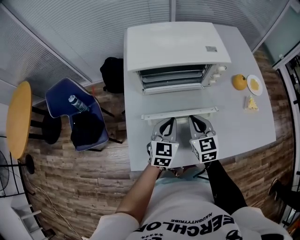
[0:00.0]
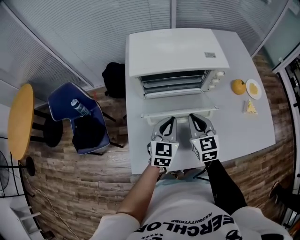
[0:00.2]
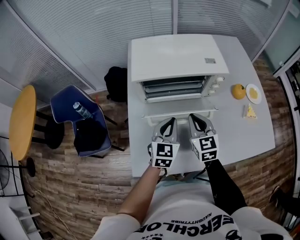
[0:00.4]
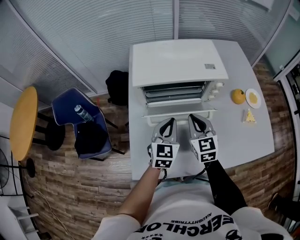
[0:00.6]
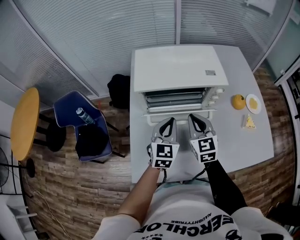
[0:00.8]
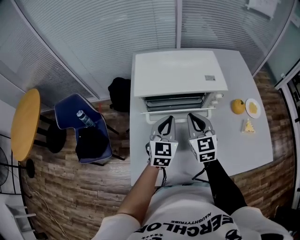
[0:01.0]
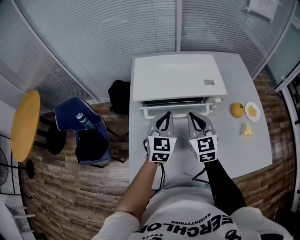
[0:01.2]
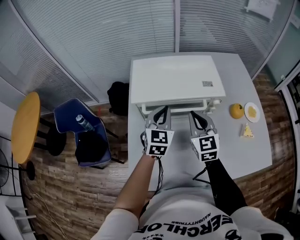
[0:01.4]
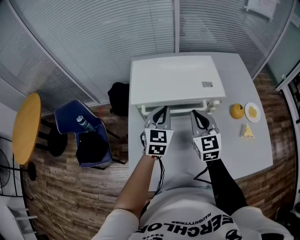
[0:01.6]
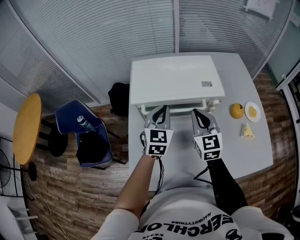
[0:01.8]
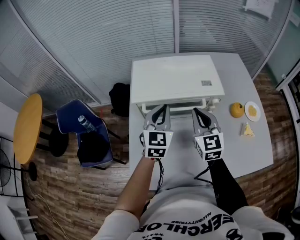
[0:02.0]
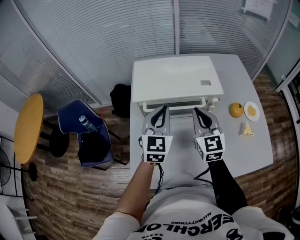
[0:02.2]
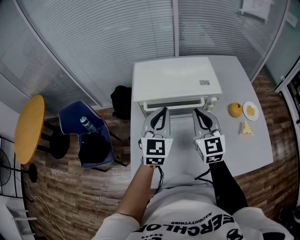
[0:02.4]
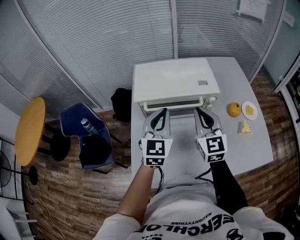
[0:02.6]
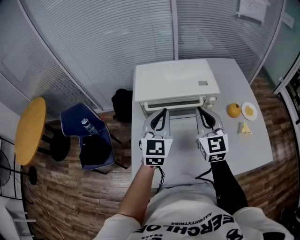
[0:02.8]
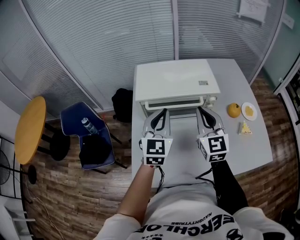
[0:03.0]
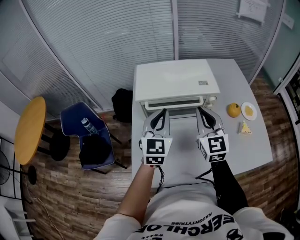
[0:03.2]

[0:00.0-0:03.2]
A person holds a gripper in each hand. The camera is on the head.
0:00.0 to 0:01.6: The right gripper travels upward and forward by about 15 cm, while the left gripper shifts approximately 20 cm forward and upward.
0:01.6 to 0:03.2: The left gripper goes approximately 10 cm backward and upward. The right gripper goes approximately 10 cm upward and backward.

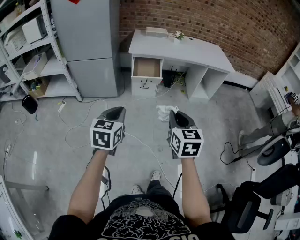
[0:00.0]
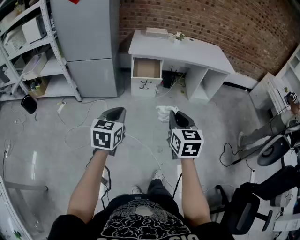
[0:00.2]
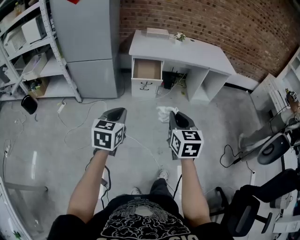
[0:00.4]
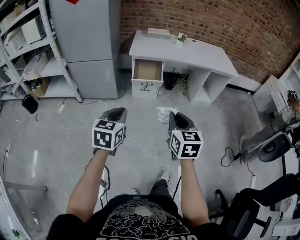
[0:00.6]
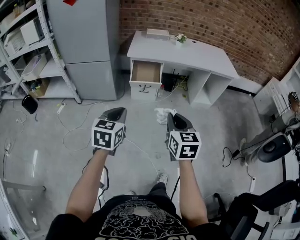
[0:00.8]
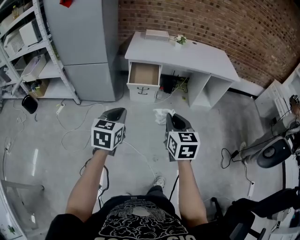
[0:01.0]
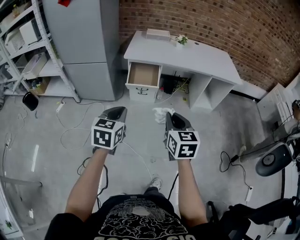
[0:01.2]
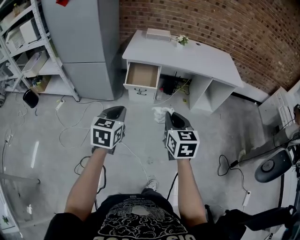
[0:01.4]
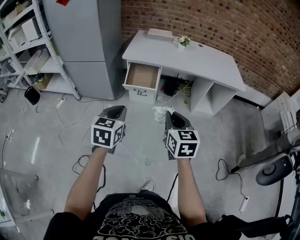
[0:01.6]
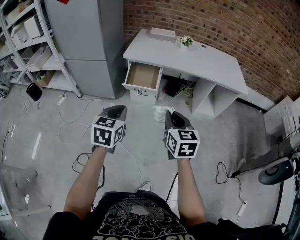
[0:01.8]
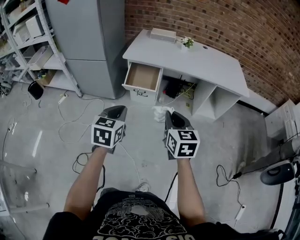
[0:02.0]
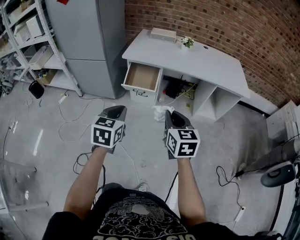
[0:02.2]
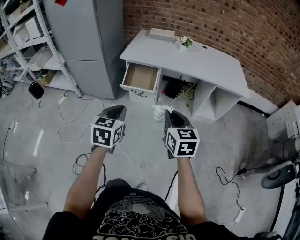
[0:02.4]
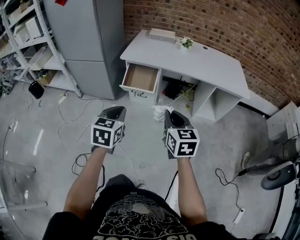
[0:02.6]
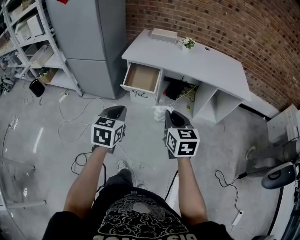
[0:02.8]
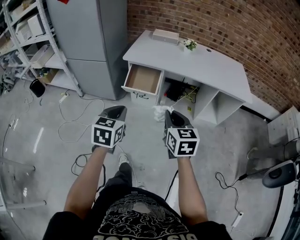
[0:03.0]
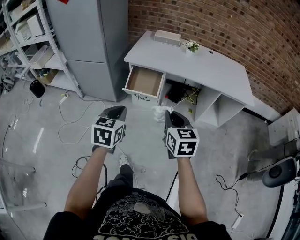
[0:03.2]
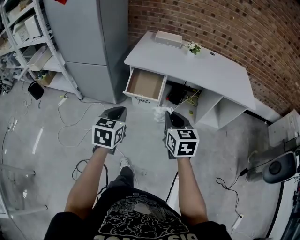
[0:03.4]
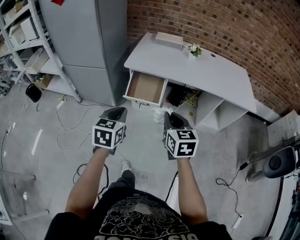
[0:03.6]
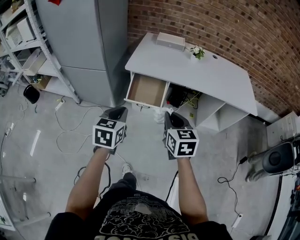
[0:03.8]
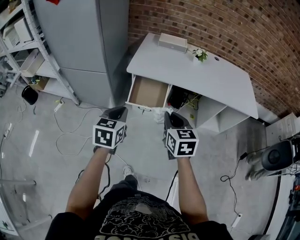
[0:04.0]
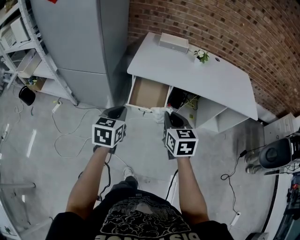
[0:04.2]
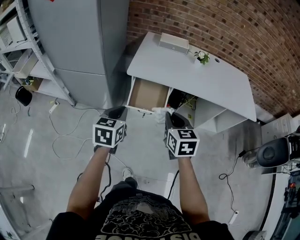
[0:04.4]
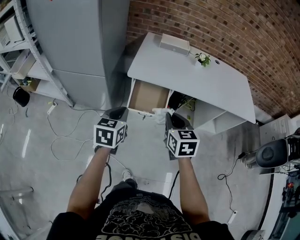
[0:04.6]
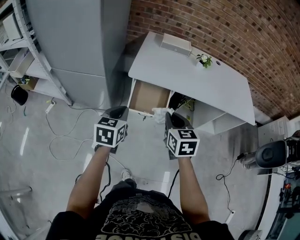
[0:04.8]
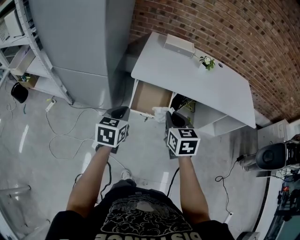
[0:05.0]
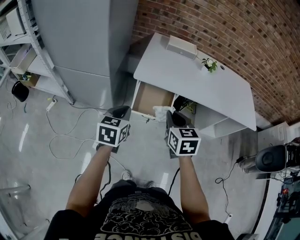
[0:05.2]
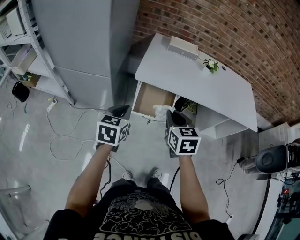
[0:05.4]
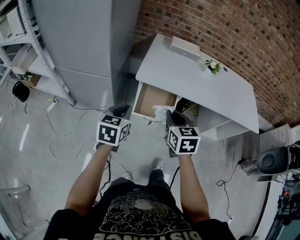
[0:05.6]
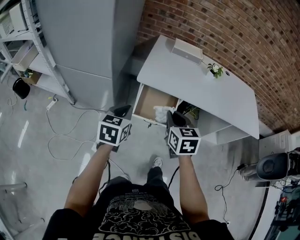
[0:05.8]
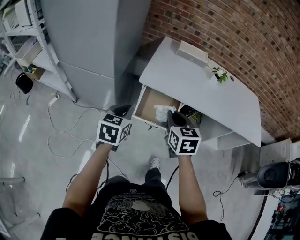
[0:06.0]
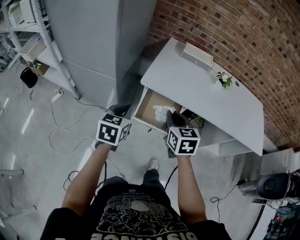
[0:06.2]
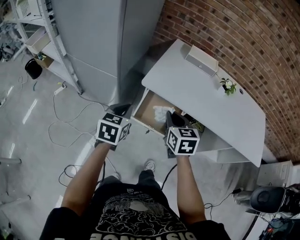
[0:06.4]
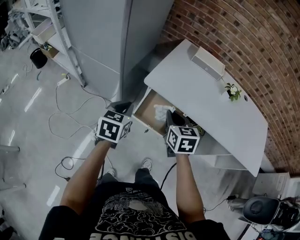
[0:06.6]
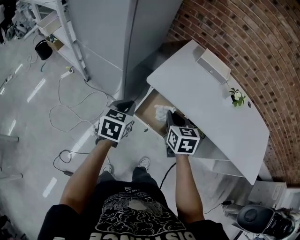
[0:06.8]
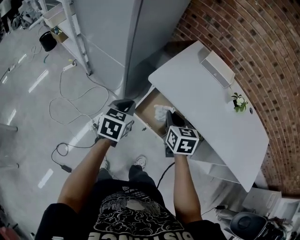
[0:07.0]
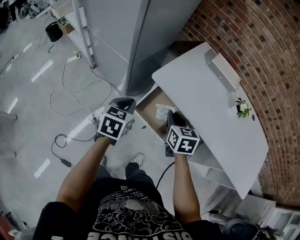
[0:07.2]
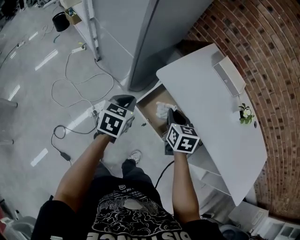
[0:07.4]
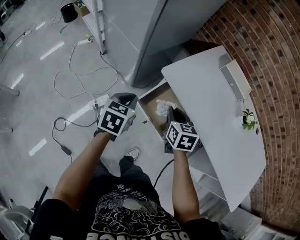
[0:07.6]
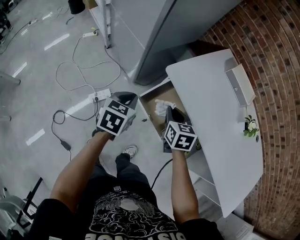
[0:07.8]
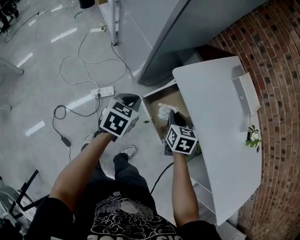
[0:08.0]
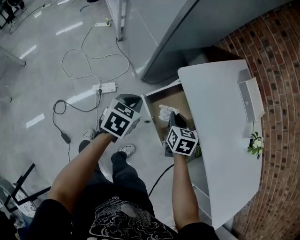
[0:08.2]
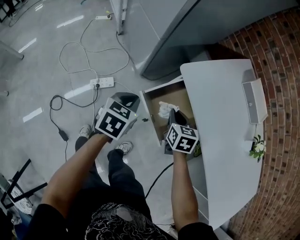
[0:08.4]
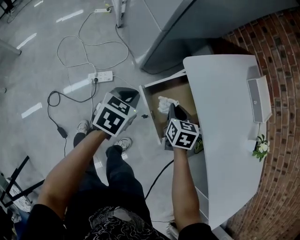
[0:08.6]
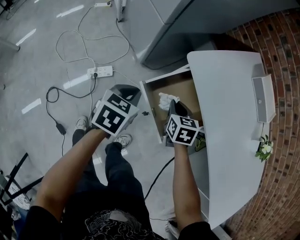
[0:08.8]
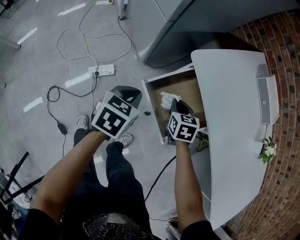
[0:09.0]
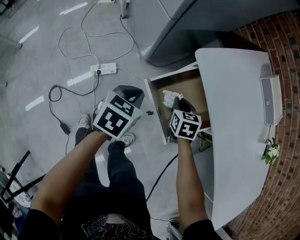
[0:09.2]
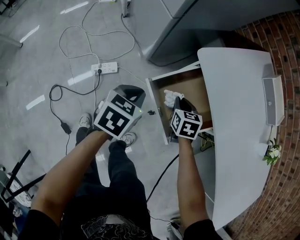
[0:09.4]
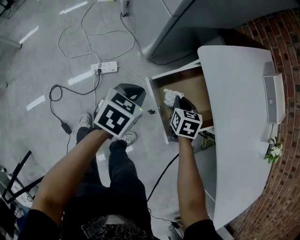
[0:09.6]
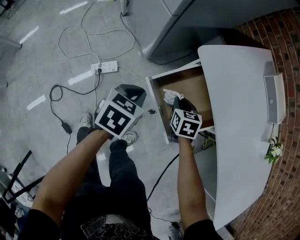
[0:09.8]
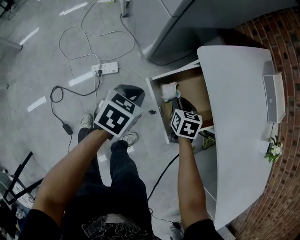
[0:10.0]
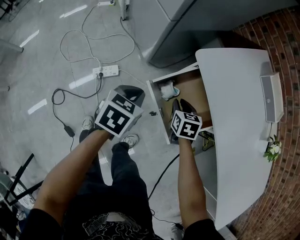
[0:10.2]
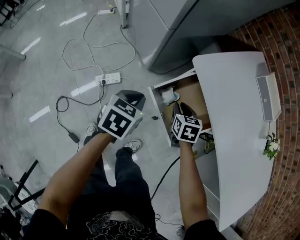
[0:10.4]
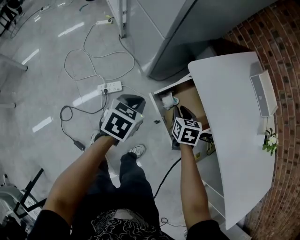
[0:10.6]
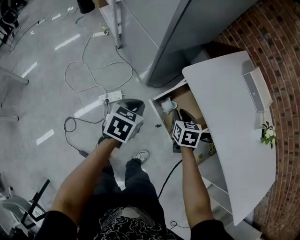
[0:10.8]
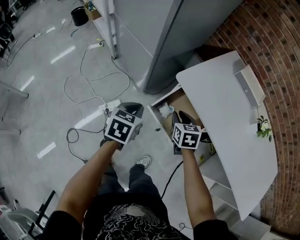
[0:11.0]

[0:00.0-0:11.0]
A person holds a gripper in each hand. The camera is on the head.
0:00.0 to 0:01.6: Both grippers travel together forward and to the right, approximately 20 cm.
0:01.6 to 0:03.2: The two grippers go some 10 cm forward.
0:03.2 to 0:04.8: The grippers both shift forward and to the left by approximately 25 cm.
0:04.8 to 0:06.2: The grippers both shift forward by approximately 10 cm.
0:06.2 to 0:07.8: Both grippers move downward, some 10 cm. The right gripper turns by some 30 degrees. The left gripper swivels approximately 30 degrees.
0:07.8 to 0:09.4: The left gripper is displaced downward by approximately 15 cm. Meanwhile the right gripper shifts about 20 cm downward.
0:09.4 to 0:11.0: The grippers both shift upward by some 15 cm.

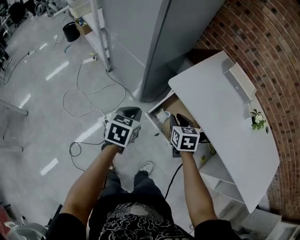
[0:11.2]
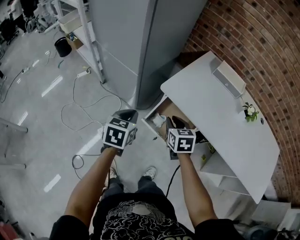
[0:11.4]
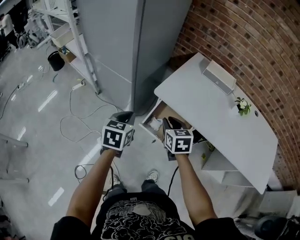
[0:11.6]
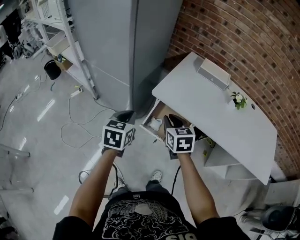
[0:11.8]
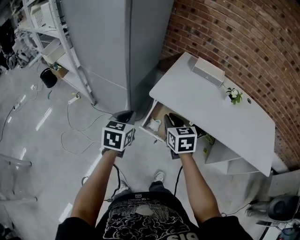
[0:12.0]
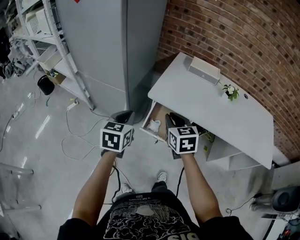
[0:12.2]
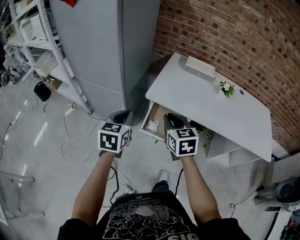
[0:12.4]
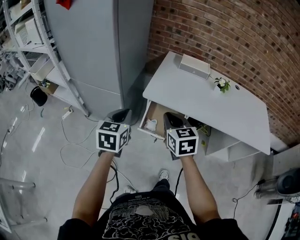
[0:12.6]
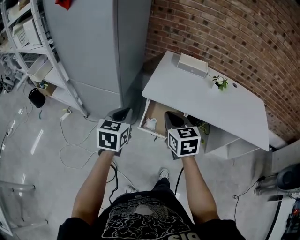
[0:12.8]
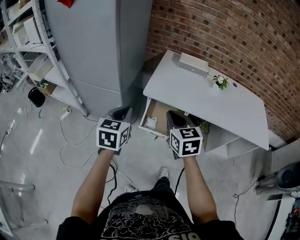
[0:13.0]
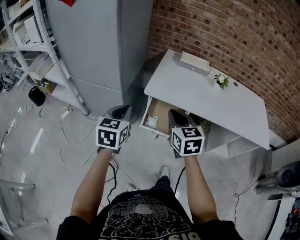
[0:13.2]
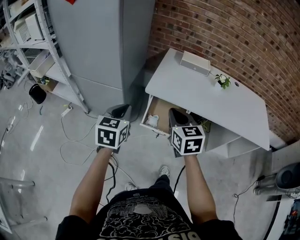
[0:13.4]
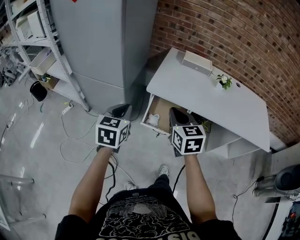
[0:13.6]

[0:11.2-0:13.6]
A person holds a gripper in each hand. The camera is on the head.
0:11.2 to 0:12.4: The grippers both shift upward by some 15 cm. The right gripper changes its angle by roughly 20 degrees, while the left gripper rotates some 20 degrees.
0:12.4 to 0:13.6: The grippers make only small movements.

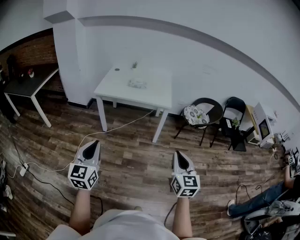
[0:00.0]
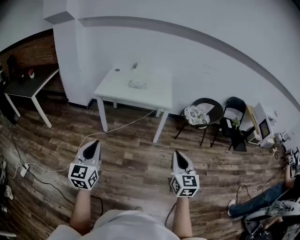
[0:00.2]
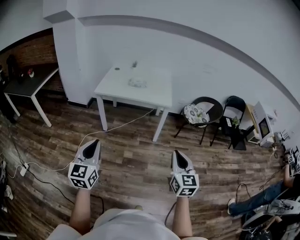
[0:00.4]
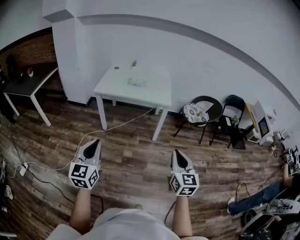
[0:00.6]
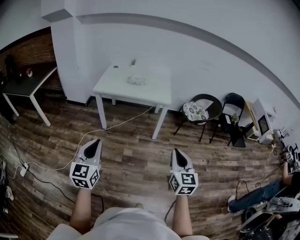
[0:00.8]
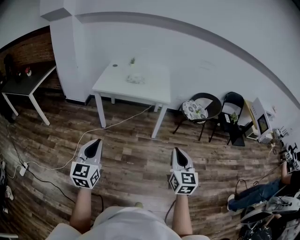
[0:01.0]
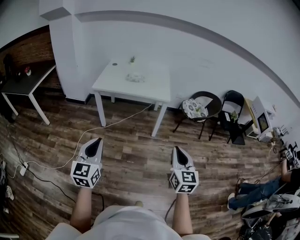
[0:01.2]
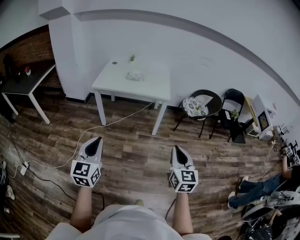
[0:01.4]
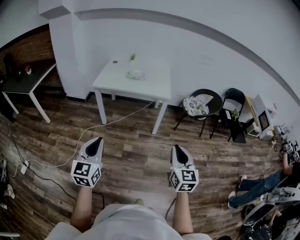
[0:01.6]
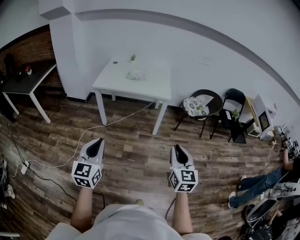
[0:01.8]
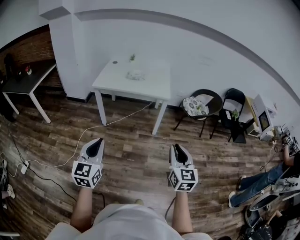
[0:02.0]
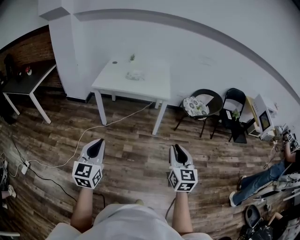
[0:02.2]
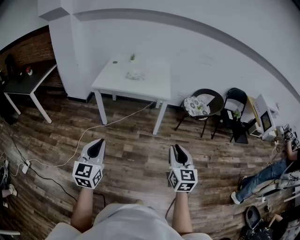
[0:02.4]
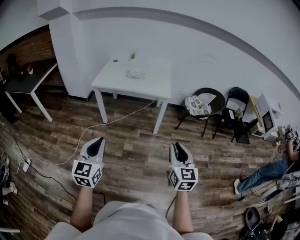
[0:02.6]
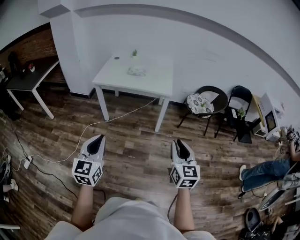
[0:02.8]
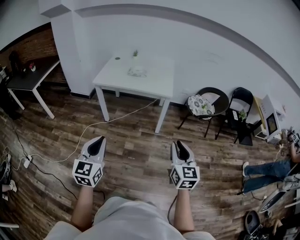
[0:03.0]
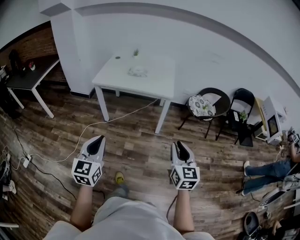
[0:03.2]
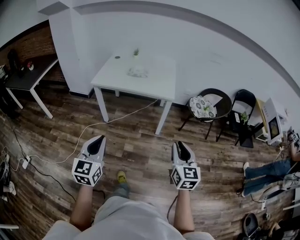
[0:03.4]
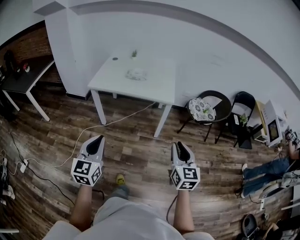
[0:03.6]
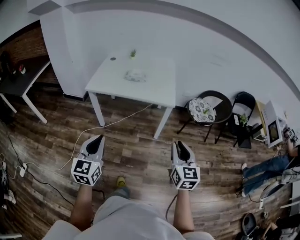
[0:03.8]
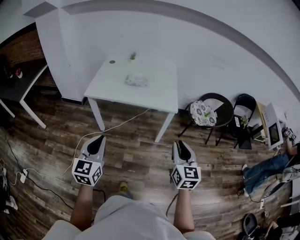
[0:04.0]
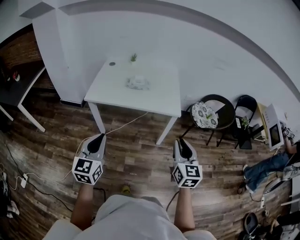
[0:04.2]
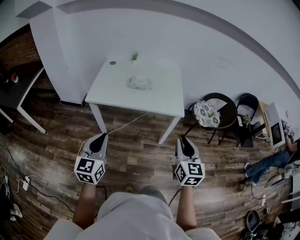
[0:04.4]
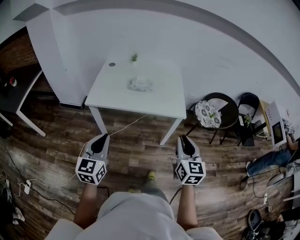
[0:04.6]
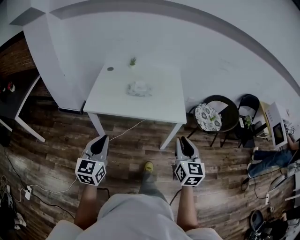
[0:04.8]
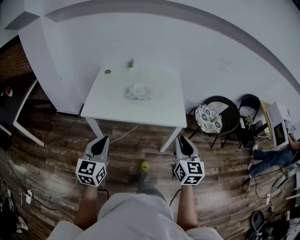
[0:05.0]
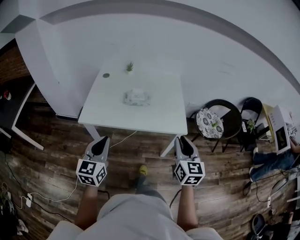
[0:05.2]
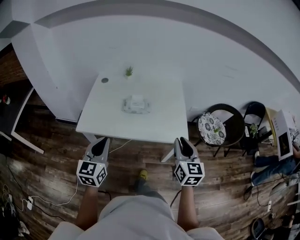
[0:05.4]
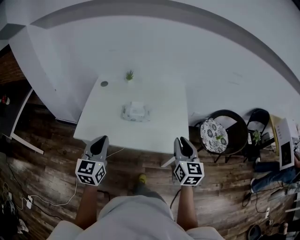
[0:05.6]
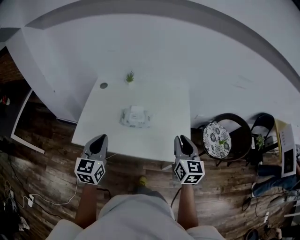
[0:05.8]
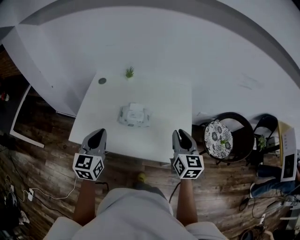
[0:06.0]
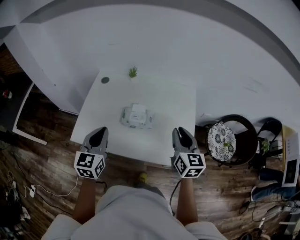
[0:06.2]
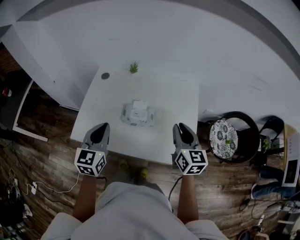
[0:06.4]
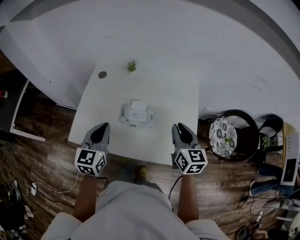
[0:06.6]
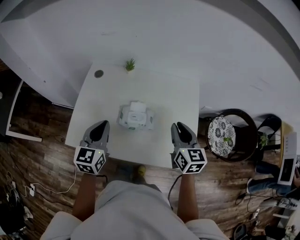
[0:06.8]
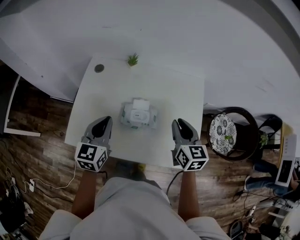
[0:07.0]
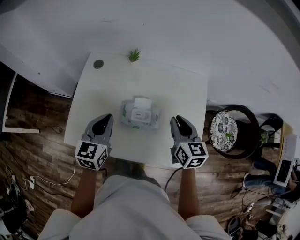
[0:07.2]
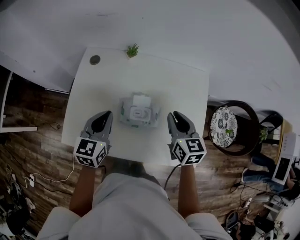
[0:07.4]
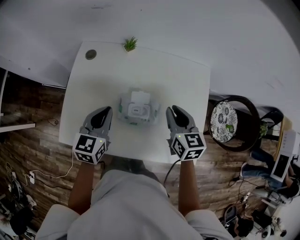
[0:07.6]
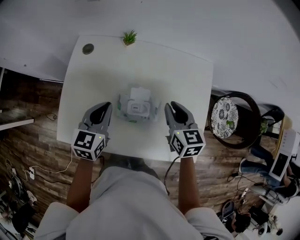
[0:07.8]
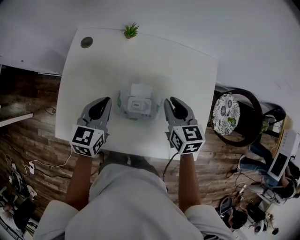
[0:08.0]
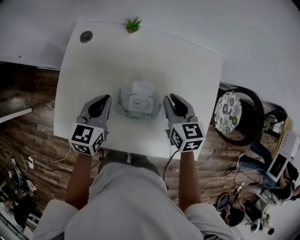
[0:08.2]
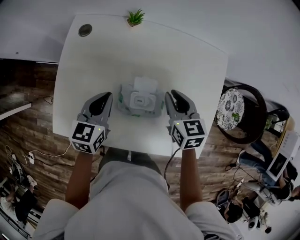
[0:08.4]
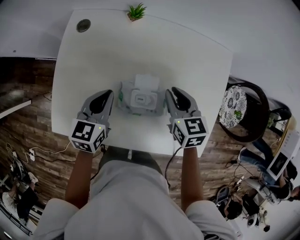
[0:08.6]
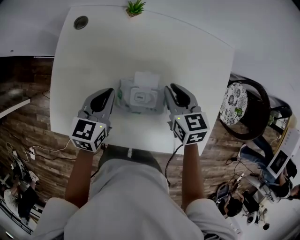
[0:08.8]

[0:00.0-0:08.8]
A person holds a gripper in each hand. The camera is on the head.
0:00.0 to 0:01.4: There are only small adjustments of the grippers.
0:01.4 to 0:03.0: The left gripper is displaced to the right by about 10 cm, while the right gripper goes approximately 10 cm to the right and forward.
0:03.0 to 0:04.4: The two grippers go roughly 35 cm forward and to the left.
0:04.4 to 0:05.8: Both grippers travel together forward, roughly 40 cm.
0:05.8 to 0:07.4: Both grippers travel together forward and downward, approximately 25 cm.
0:07.4 to 0:08.8: The two grippers go some 15 cm downward and forward.
